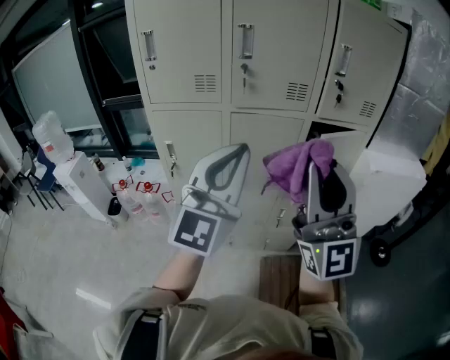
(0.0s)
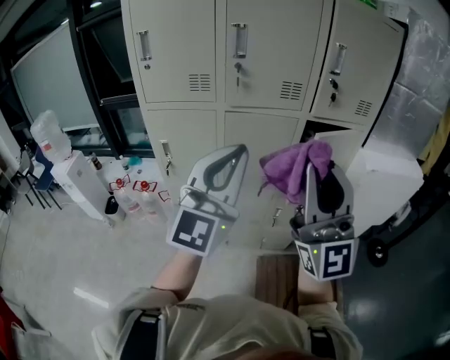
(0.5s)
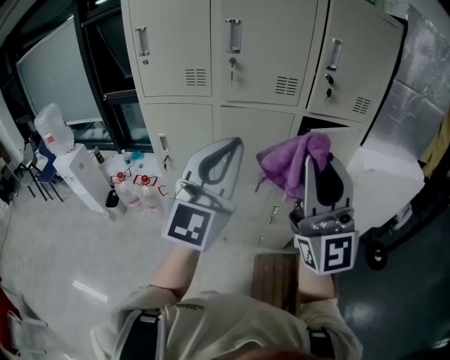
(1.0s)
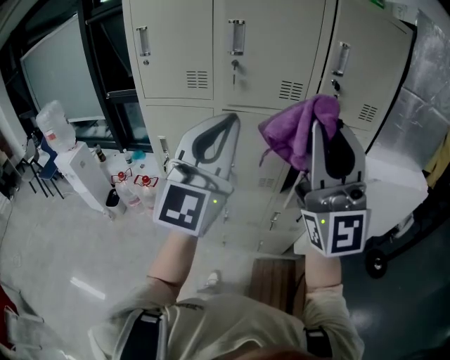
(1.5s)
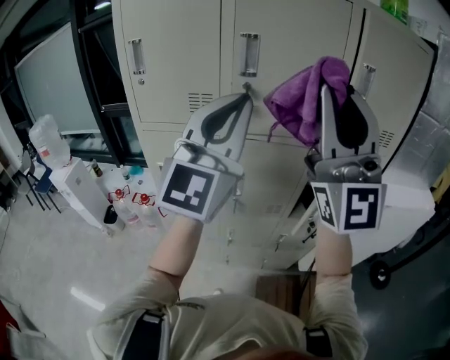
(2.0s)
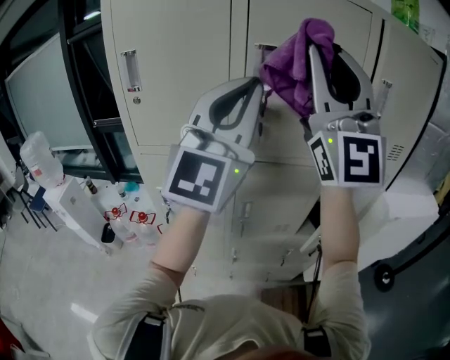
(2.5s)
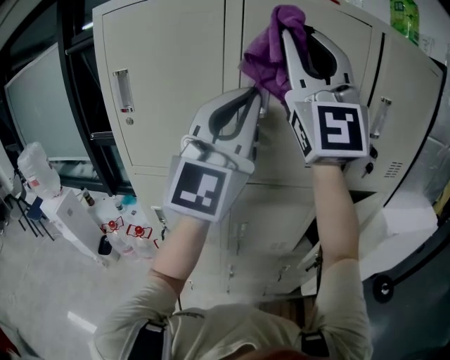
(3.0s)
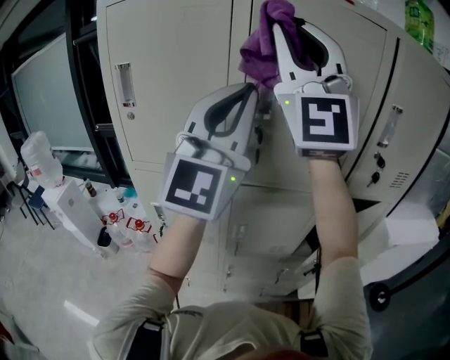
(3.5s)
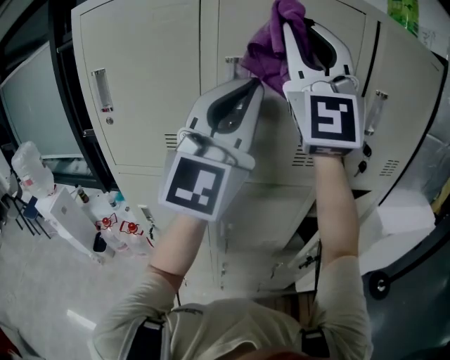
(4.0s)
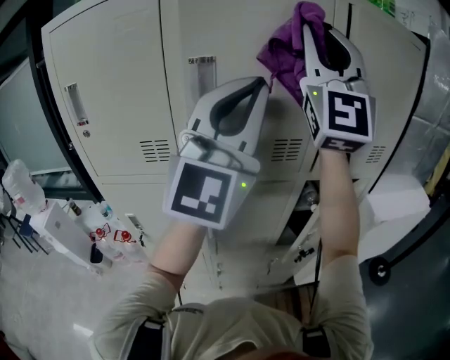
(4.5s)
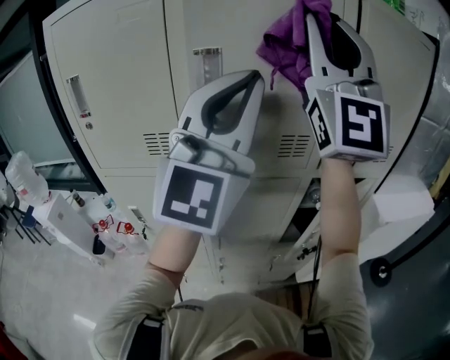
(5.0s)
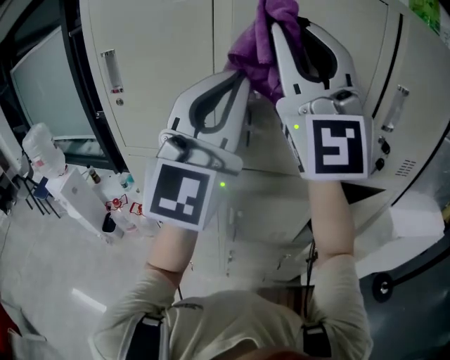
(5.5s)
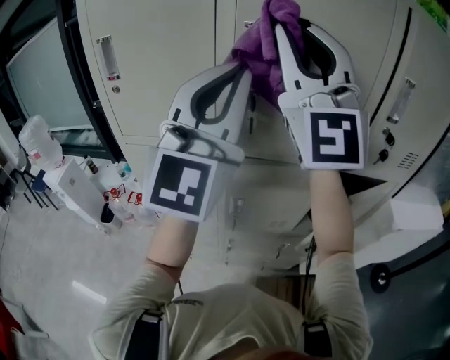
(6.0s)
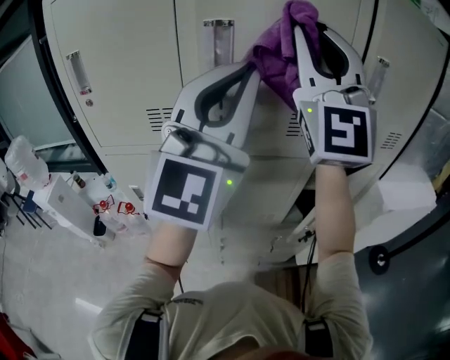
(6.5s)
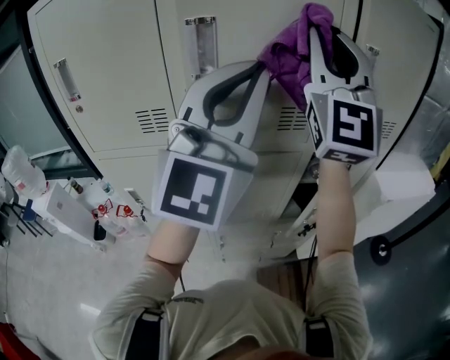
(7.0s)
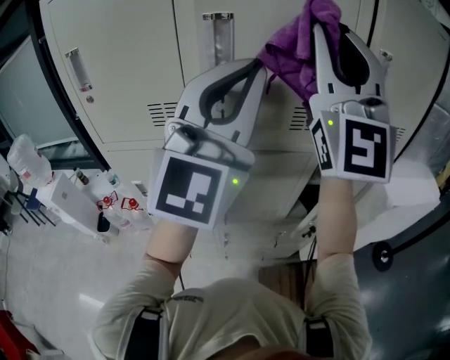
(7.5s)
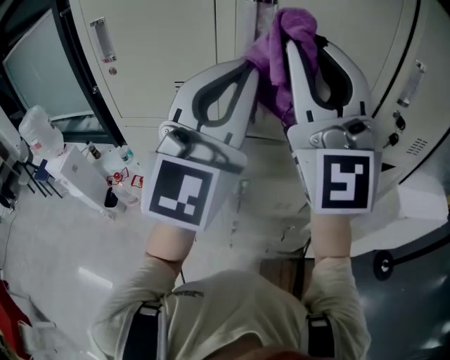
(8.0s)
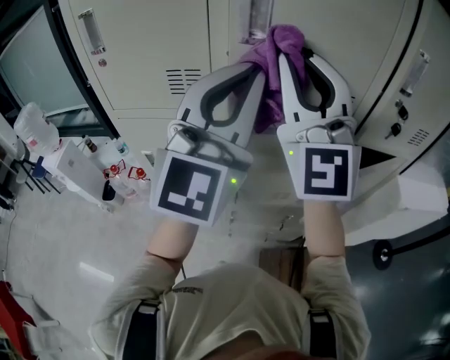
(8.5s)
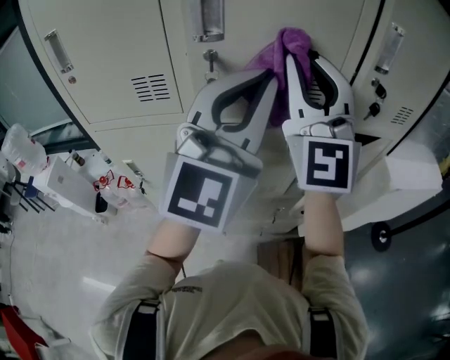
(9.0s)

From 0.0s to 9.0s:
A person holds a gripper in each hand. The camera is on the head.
From 0.0s to 2.0s: The grippers both shift forward and upward by some 20 cm.
From 2.0s to 4.5s: The left gripper shifts approximately 15 cm forward, to the right and upward. Meanwhile the right gripper heads forward and upward, covering about 20 cm, and changes its angle by about 20 degrees.
From 4.5s to 7.0s: The left gripper goes to the left and returns, roughly 10 cm each way. Meanwhile the right gripper is displaced downward by roughly 5 cm, and moves some 15 cm to the left and comes back.
From 7.0s to 9.0s: The left gripper is displaced downward by some 5 cm, and goes to the left and returns, some 10 cm each way; the right gripper travels downward by some 10 cm.

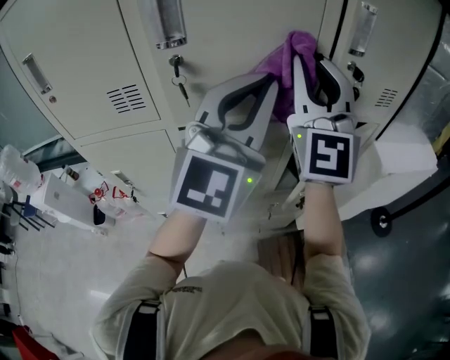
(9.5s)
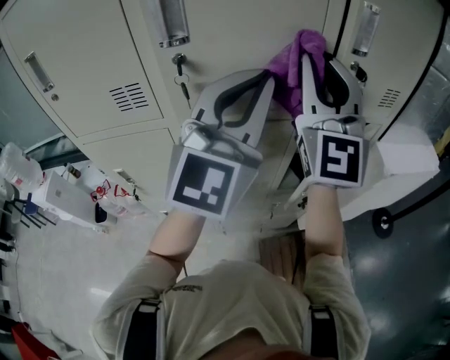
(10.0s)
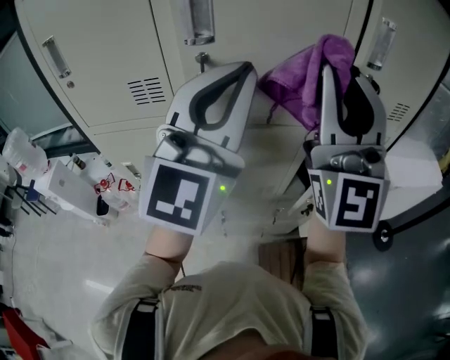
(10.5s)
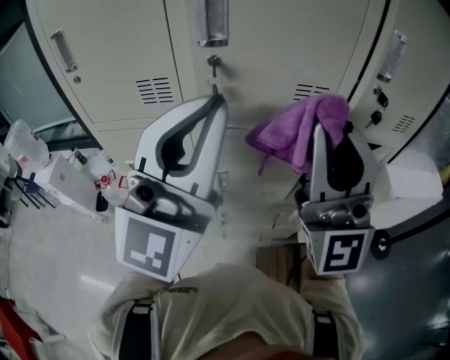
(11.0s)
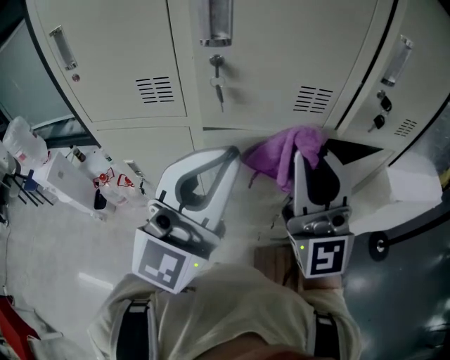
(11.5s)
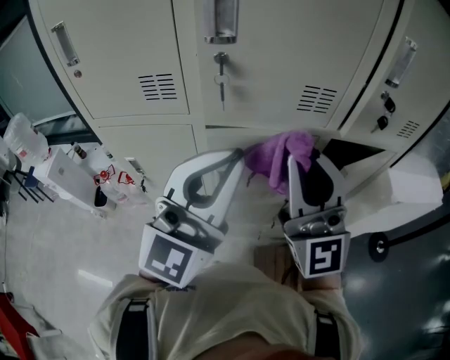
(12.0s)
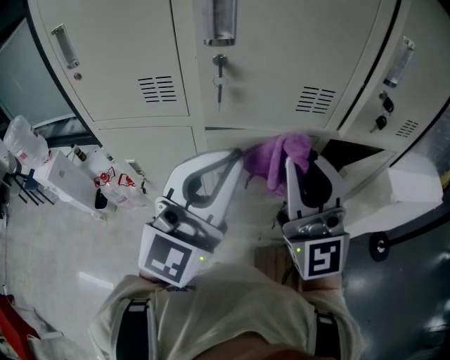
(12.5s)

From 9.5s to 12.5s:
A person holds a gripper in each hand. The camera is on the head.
From 9.5s to 11.0s: The right gripper heads backward, covering about 10 cm; the left gripper moves to the left and backward, some 15 cm.
From 11.0s to 12.5s: The two grippers go approximately 10 cm downward.

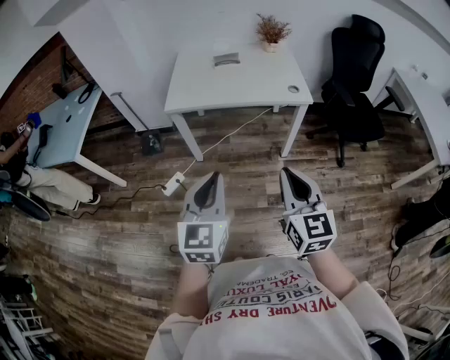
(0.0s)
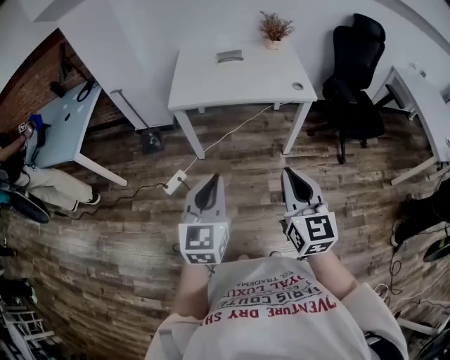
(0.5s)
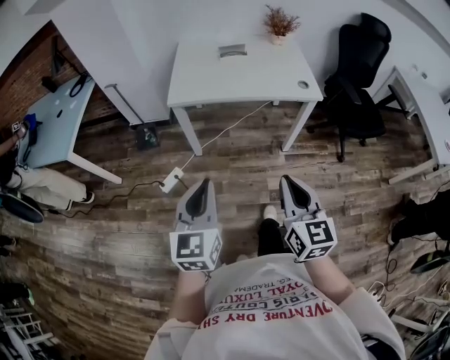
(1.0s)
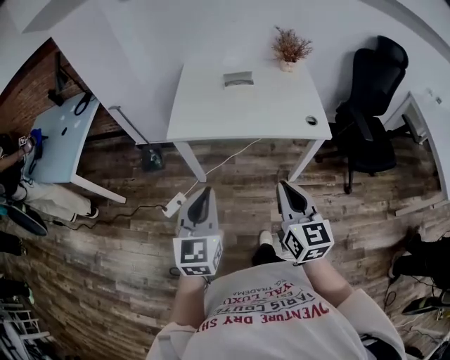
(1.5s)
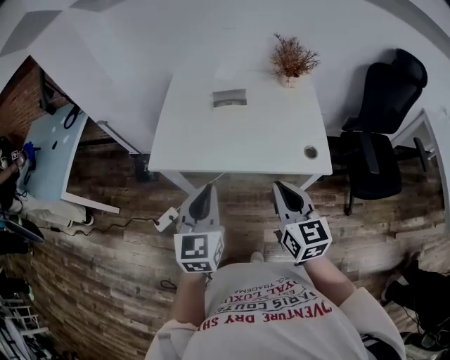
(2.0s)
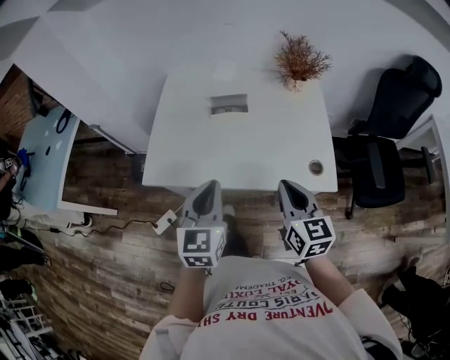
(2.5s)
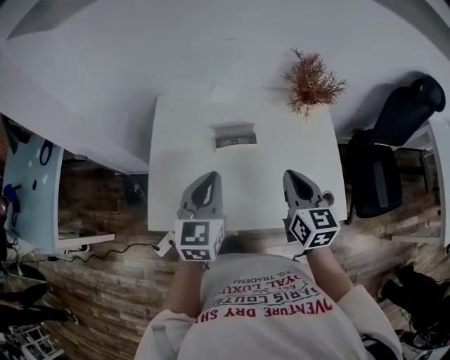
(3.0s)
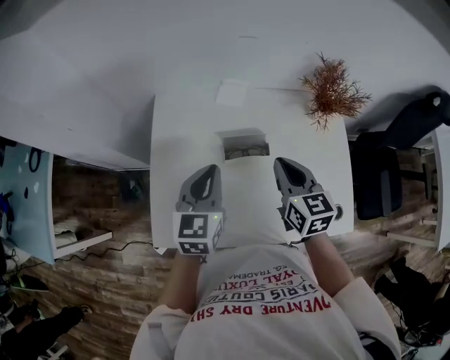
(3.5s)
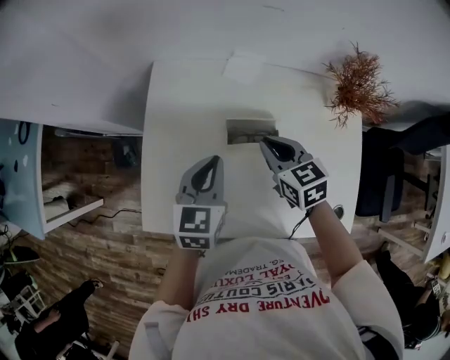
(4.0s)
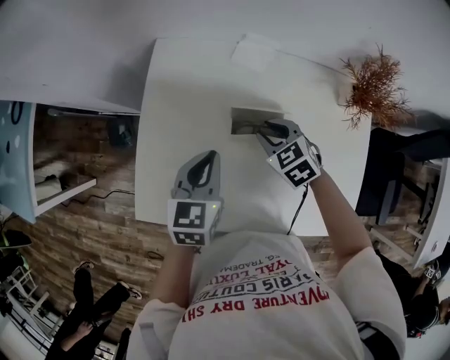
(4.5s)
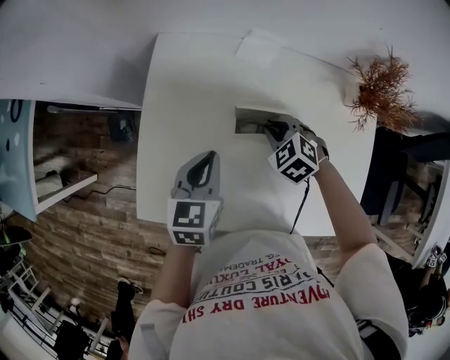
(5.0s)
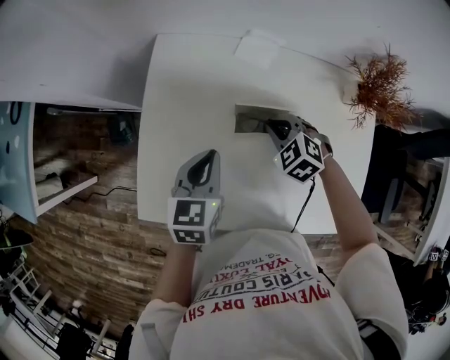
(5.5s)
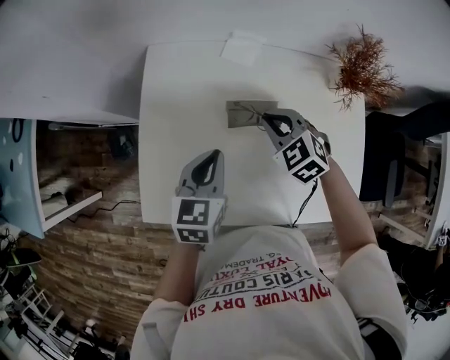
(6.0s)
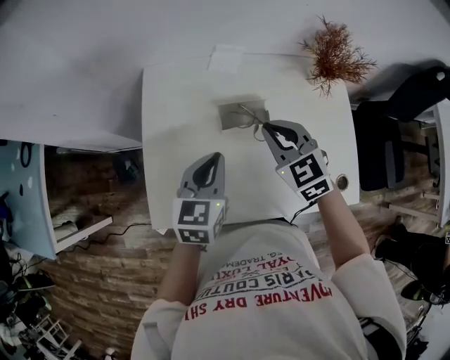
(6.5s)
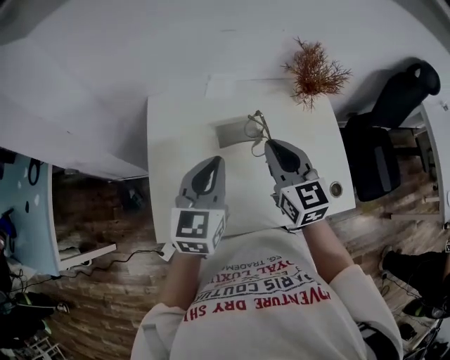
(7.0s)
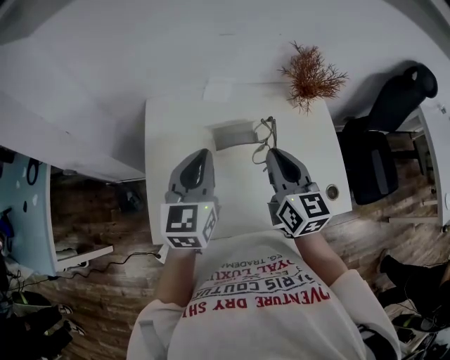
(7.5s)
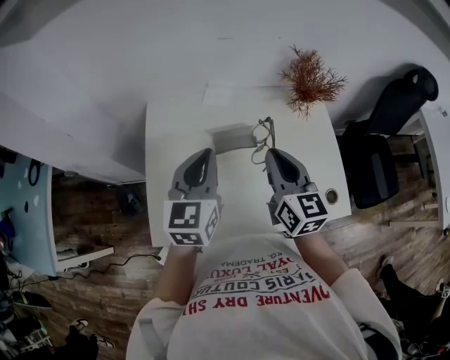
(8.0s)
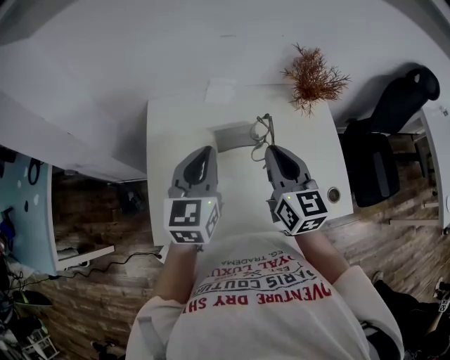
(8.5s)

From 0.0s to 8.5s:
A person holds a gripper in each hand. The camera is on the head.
From 0.0s to 2.0s: The two grippers go roughly 35 cm forward.
From 2.0s to 4.0s: The two grippers travel together, forward, approximately 40 cm. The left gripper turns by about 20 degrees. The right gripper turns by about 30 degrees.
From 4.0s to 6.5s: The right gripper reaches approximately 10 cm downward, then returns, turns by about 20 degrees, and opens and closes again.
From 6.5s to 8.5s: Both grippers travel together upward, approximately 10 cm. The right gripper turns by approximately 40 degrees.

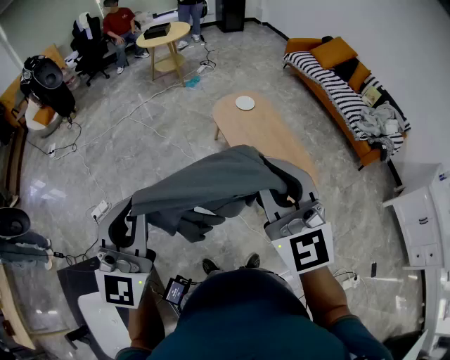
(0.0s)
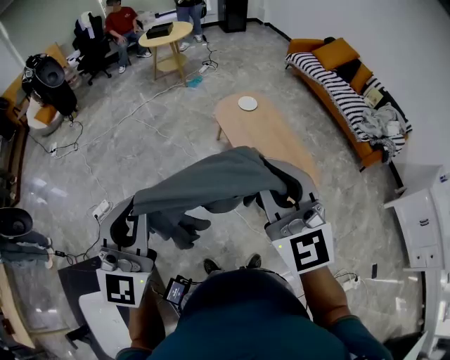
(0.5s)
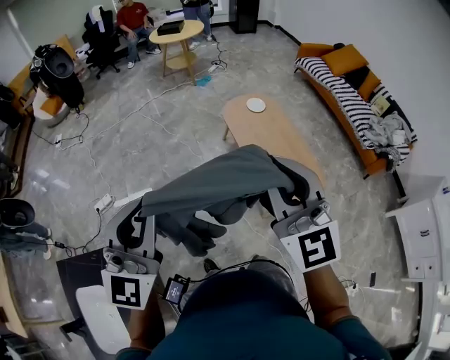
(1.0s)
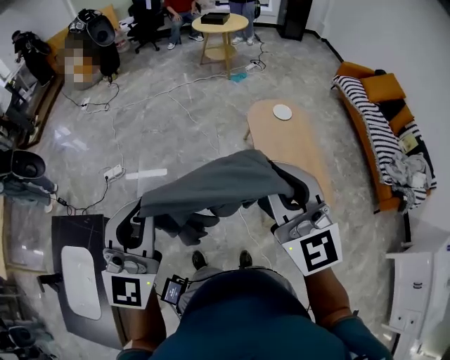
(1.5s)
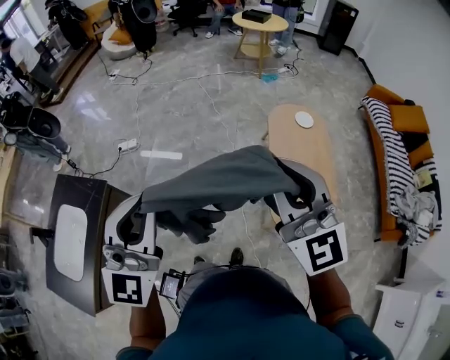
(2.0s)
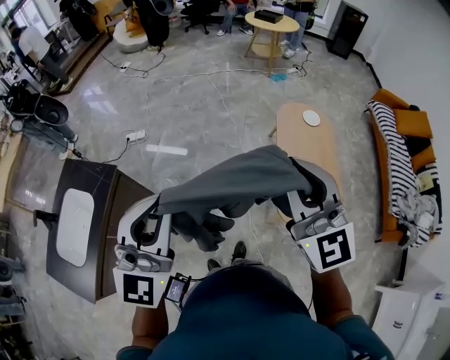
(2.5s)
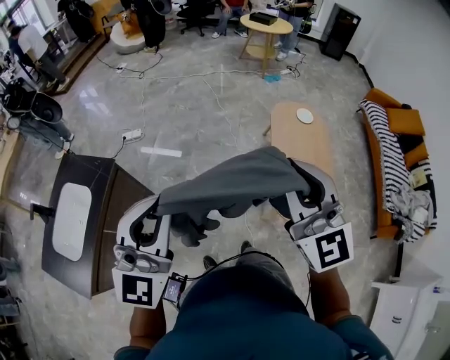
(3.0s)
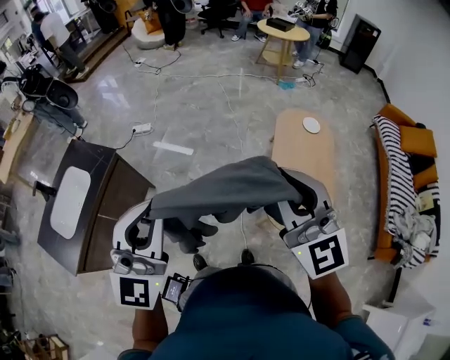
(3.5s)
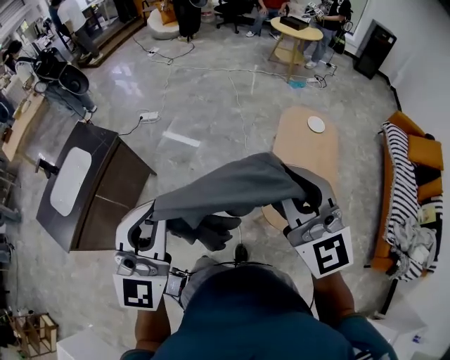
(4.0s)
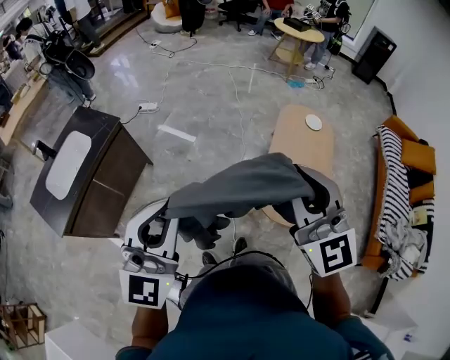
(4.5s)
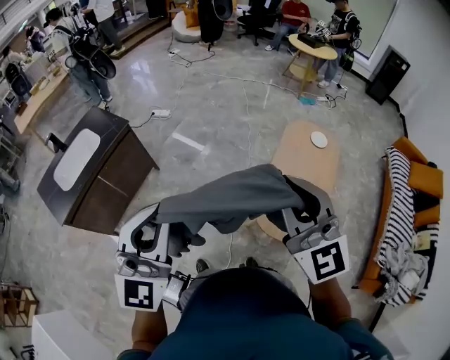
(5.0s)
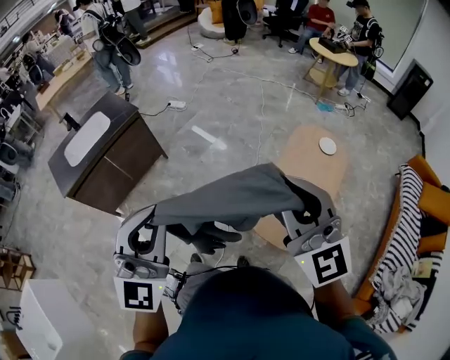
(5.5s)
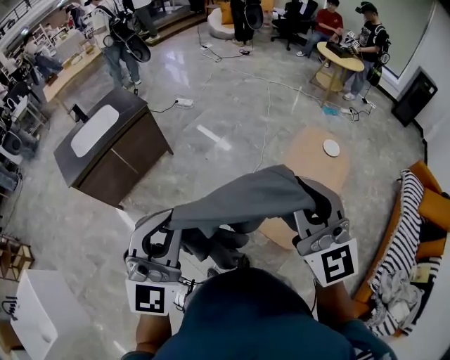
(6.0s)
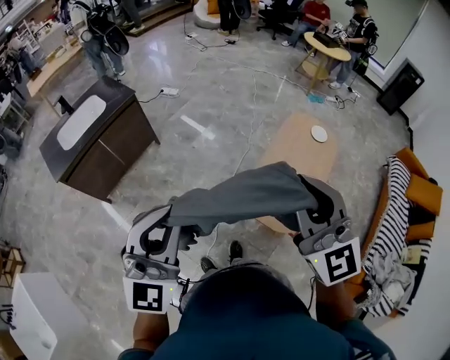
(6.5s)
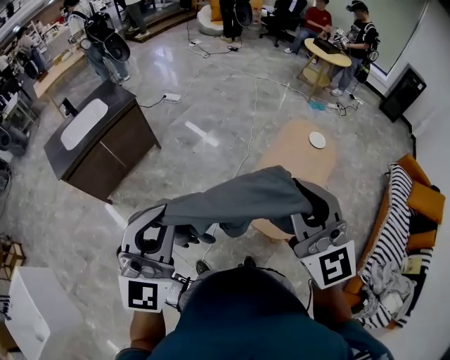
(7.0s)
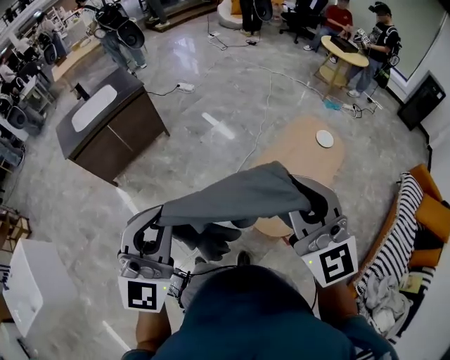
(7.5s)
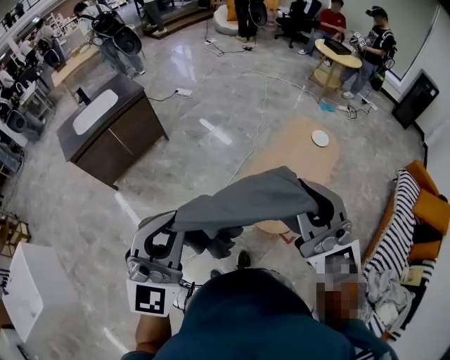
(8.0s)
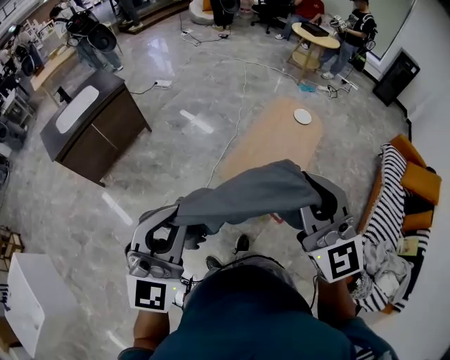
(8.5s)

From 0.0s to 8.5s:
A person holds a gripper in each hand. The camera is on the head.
From 0.0s to 2.0s: The left gripper moves about 10 cm, and changes its angle by about 30 degrees. Meanwhile the right gripper changes its angle by about 30 degrees.
From 2.0s to 4.0s: Both grippers travel together backward and to the right, about 20 cm.
From 4.0s to 6.5s: The grippers both shift backward and to the right by roughly 20 cm.
From 6.5s to 8.5s: The grippers both shift to the right and backward by about 20 cm.
